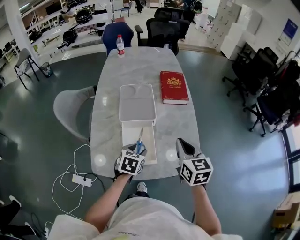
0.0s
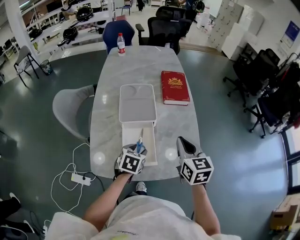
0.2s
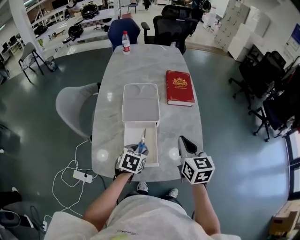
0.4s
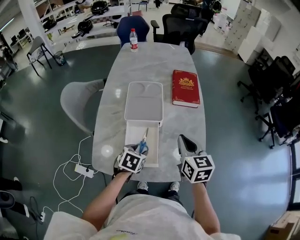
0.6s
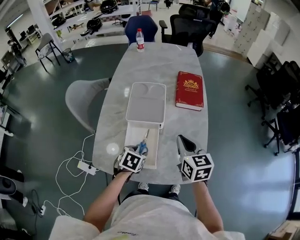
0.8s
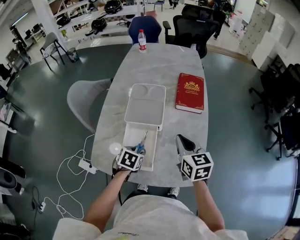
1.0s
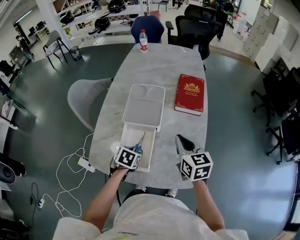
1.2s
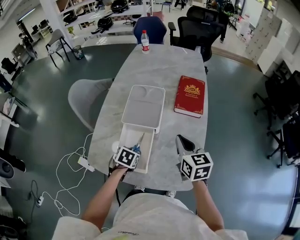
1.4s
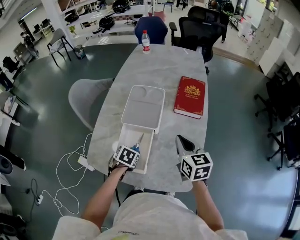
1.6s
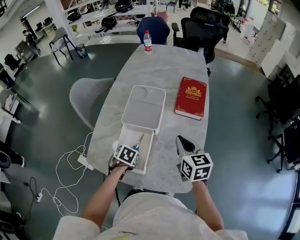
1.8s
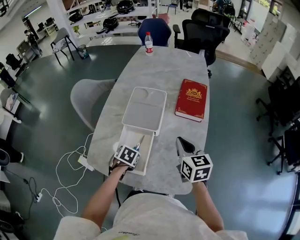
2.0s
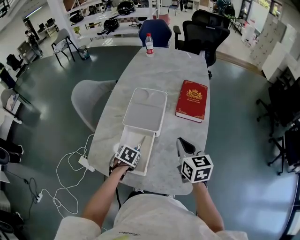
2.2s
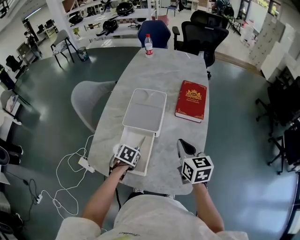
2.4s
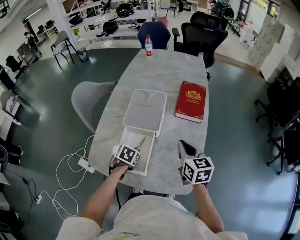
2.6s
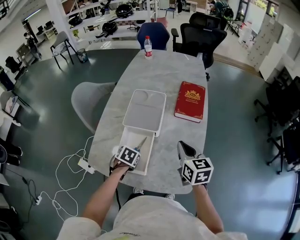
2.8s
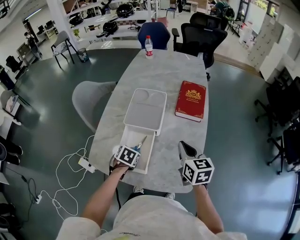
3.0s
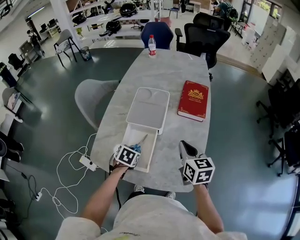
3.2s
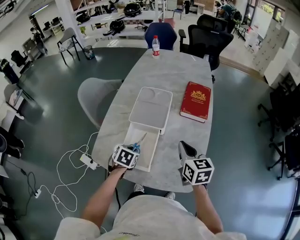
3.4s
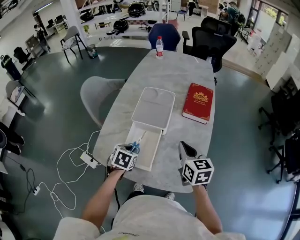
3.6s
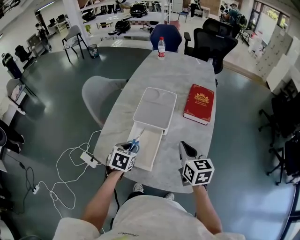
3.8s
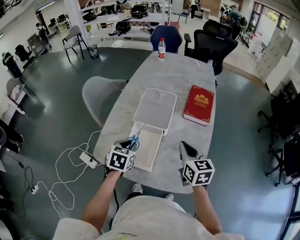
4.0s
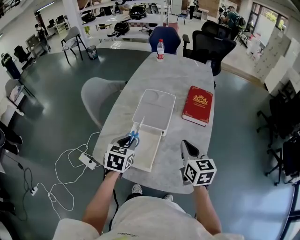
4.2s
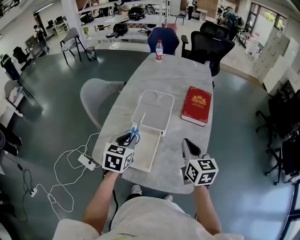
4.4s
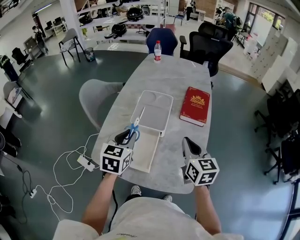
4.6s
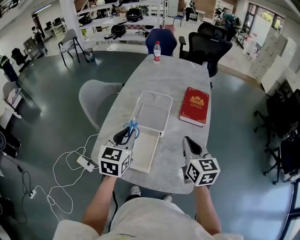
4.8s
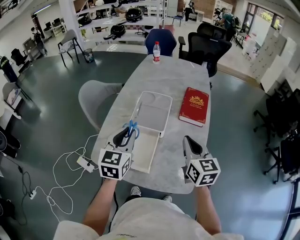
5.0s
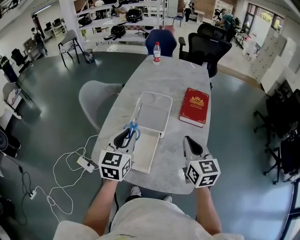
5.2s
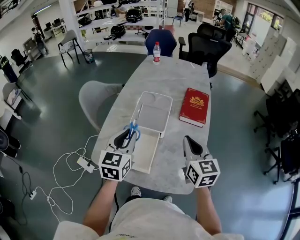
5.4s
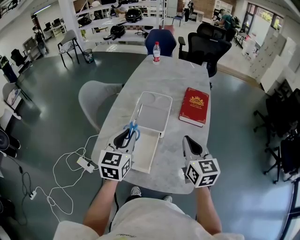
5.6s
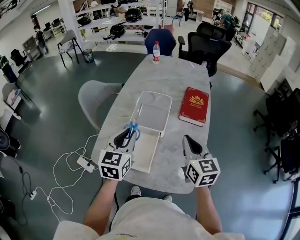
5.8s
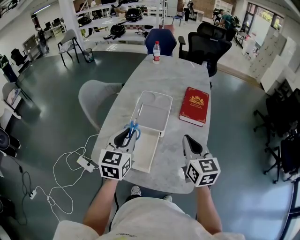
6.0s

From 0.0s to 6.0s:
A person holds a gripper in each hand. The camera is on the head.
From 0.0s to 1.6s: The right gripper goes about 10 cm forward, and swivels some 20 degrees. The left gripper moves downward, approximately 10 cm, and swivels about 30 degrees.
From 1.6s to 3.0s: The left gripper closes.
From 3.0s to 4.4s: The left gripper shifts approximately 20 cm upward, and points its fingers about 30 degrees further upward.
From 4.4s to 6.0s: The left gripper shifts some 5 cm upward.

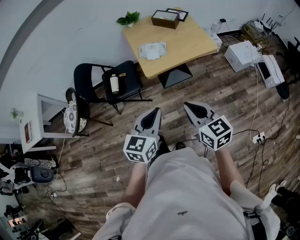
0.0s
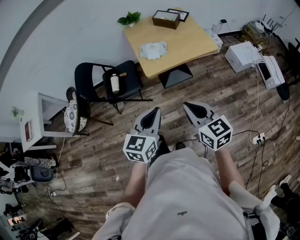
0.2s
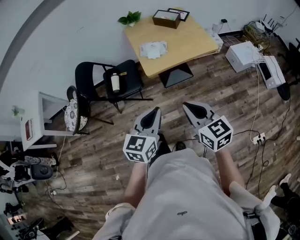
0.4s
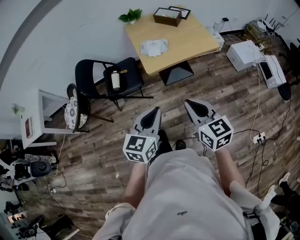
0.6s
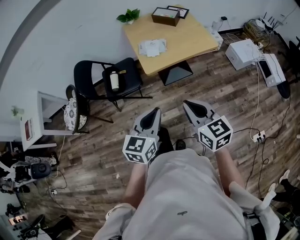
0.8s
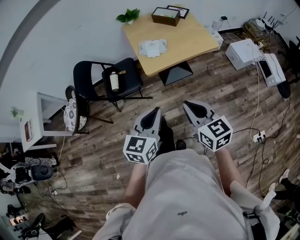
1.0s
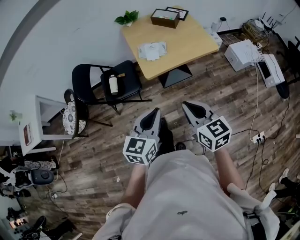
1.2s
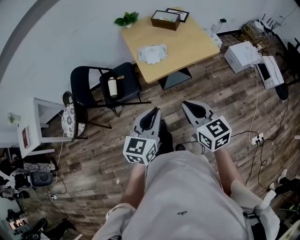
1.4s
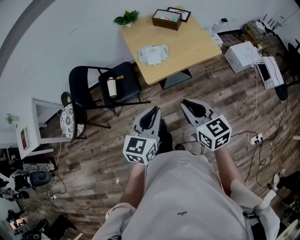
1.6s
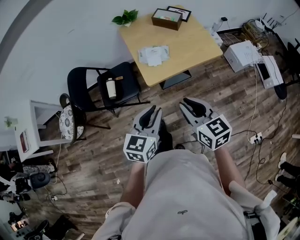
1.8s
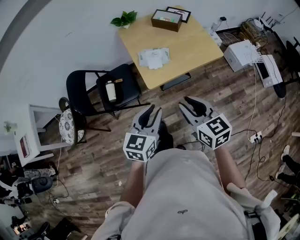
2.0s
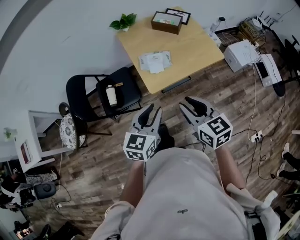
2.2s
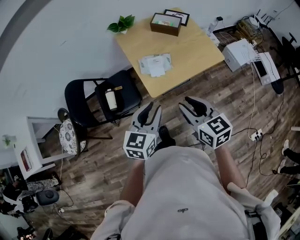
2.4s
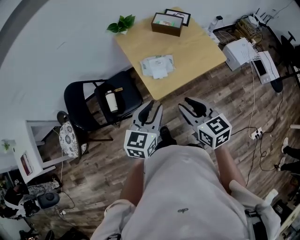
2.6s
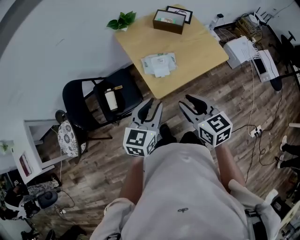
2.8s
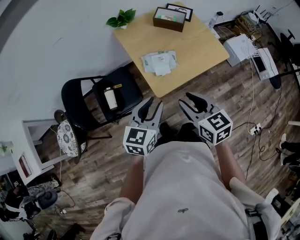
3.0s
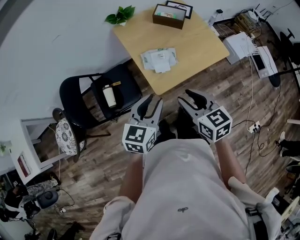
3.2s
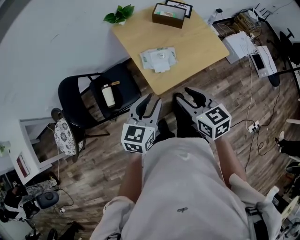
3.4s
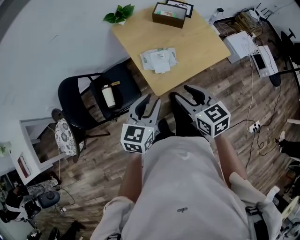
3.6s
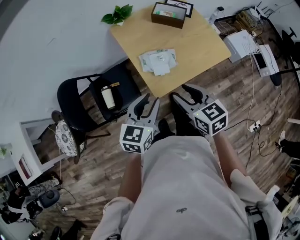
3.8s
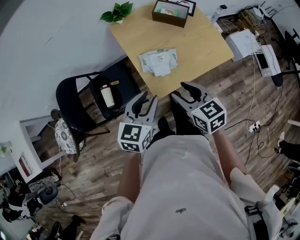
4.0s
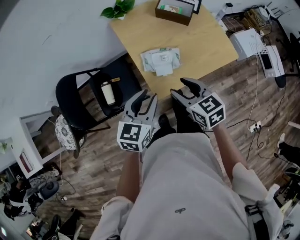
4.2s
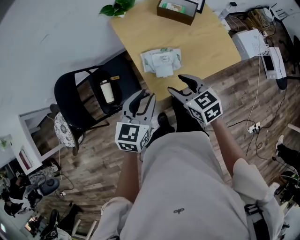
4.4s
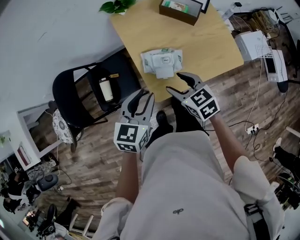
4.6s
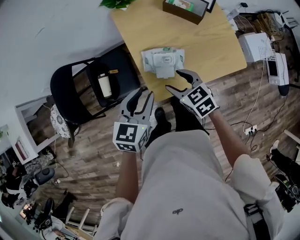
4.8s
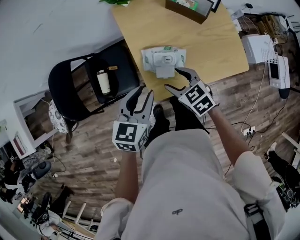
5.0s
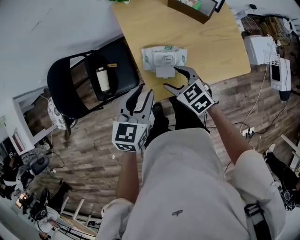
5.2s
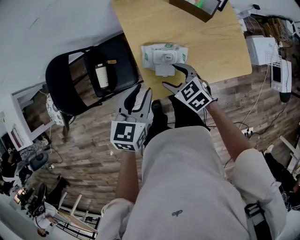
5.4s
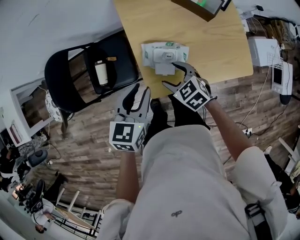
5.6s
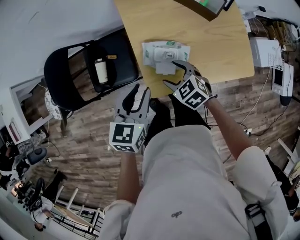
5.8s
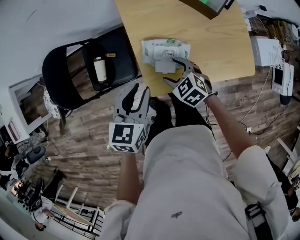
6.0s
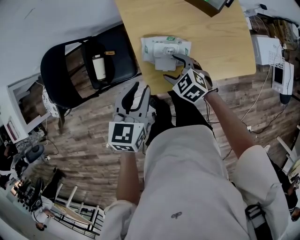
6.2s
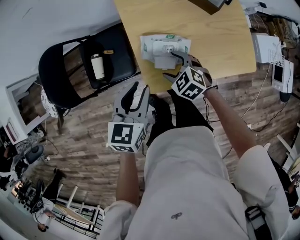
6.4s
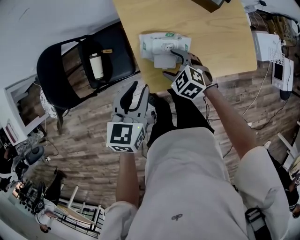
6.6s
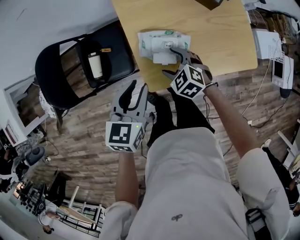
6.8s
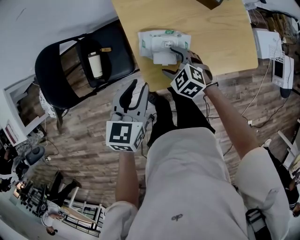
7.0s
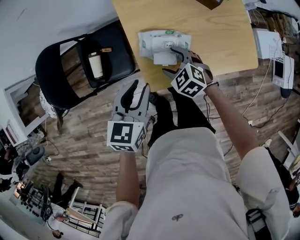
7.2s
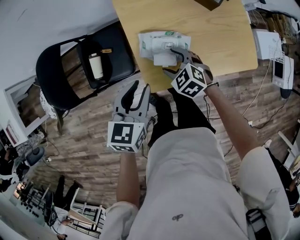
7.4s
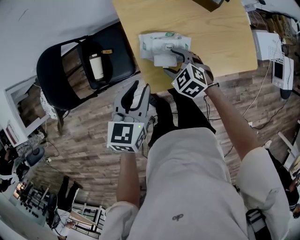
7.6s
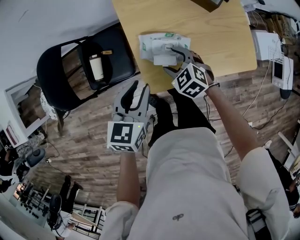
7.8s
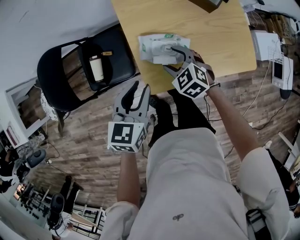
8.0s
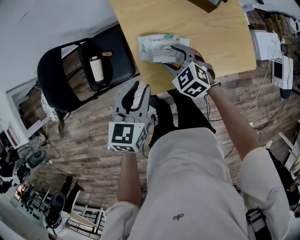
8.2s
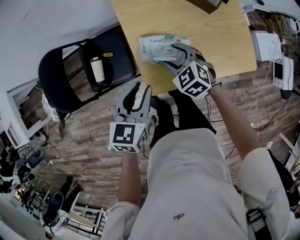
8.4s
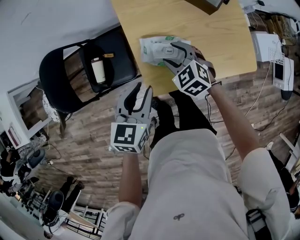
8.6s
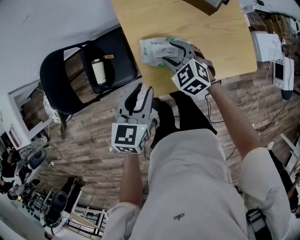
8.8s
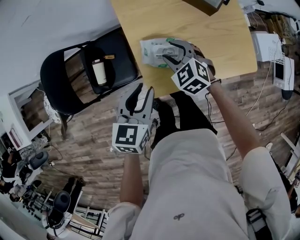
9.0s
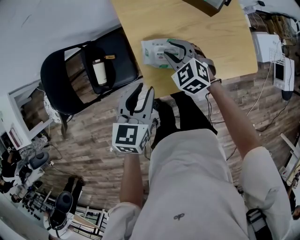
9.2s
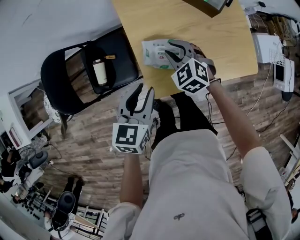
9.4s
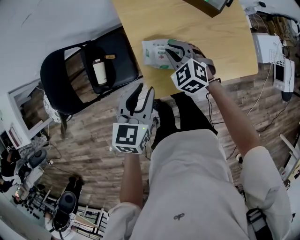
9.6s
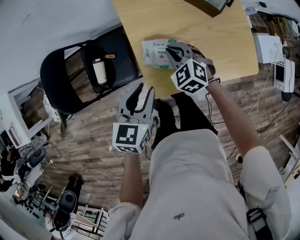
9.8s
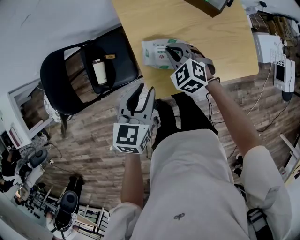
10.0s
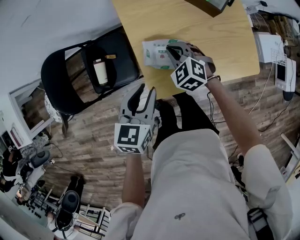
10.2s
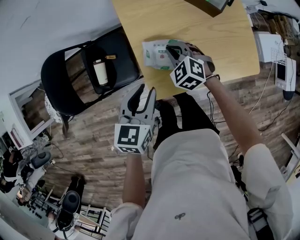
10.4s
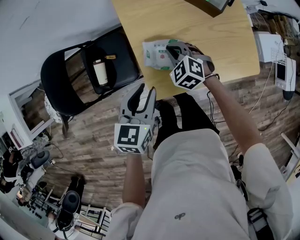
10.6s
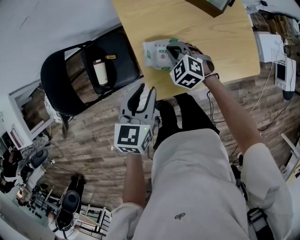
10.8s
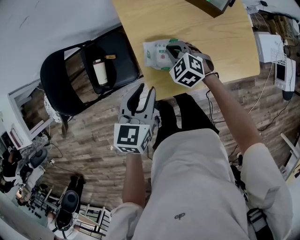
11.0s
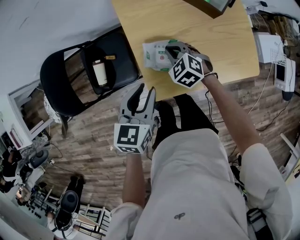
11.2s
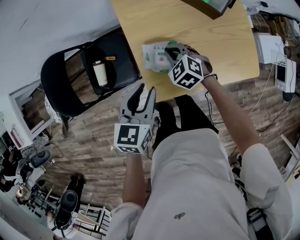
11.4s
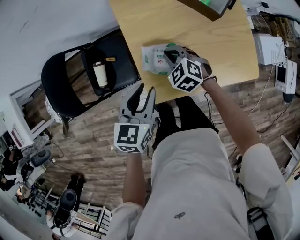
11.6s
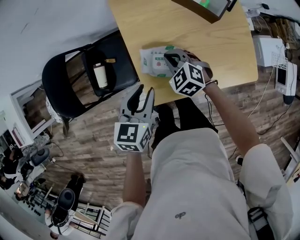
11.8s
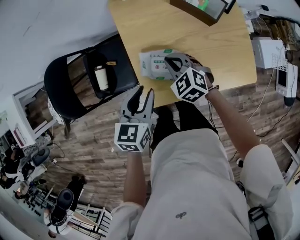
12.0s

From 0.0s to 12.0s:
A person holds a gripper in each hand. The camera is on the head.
From 0.0s to 1.6s: Both grippers move forward, approximately 10 cm.
From 1.6s to 3.0s: The grippers both shift forward and to the left by roughly 20 cm. The left gripper opens.
From 3.0s to 4.4s: The left gripper is displaced forward by approximately 10 cm. The right gripper moves forward and downward, approximately 15 cm.
From 4.4s to 6.0s: The left gripper moves downward and forward, some 10 cm. The right gripper goes about 15 cm downward and forward, and turns by approximately 30 degrees.
From 6.0s to 7.6s: The grippers make only small movements.
From 7.6s to 9.0s: The right gripper is displaced forward and upward by about 10 cm.
From 9.0s to 10.4s: The right gripper closes.
From 10.4s to 12.0s: The grippers move only a little.

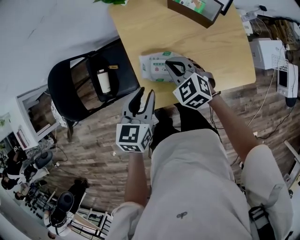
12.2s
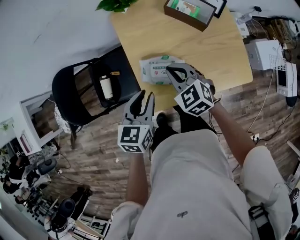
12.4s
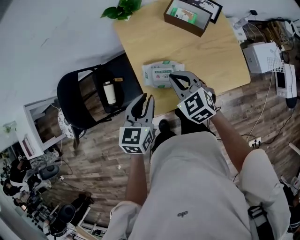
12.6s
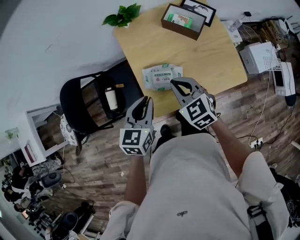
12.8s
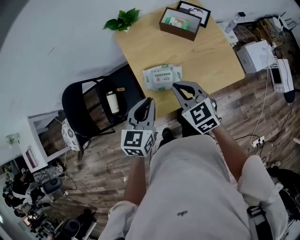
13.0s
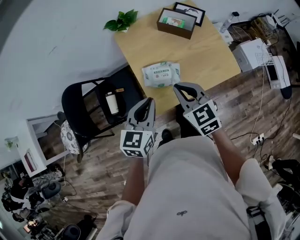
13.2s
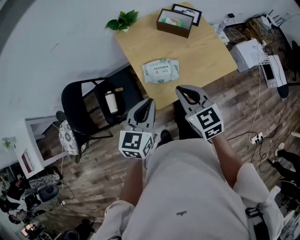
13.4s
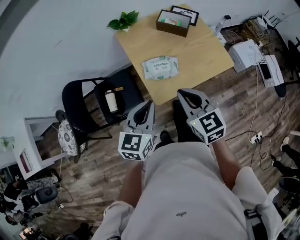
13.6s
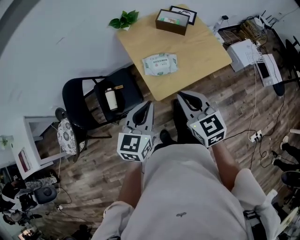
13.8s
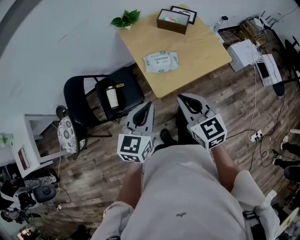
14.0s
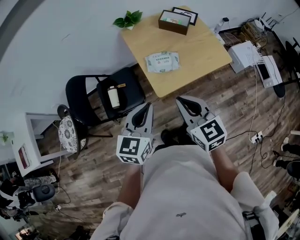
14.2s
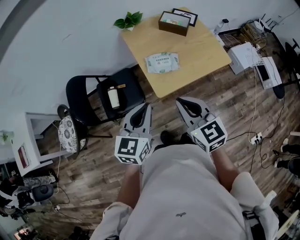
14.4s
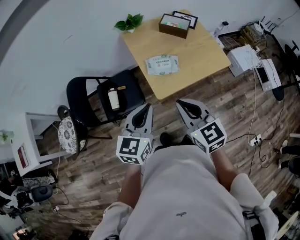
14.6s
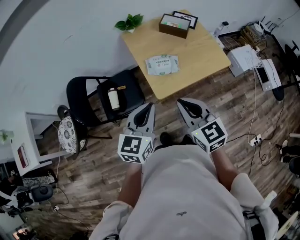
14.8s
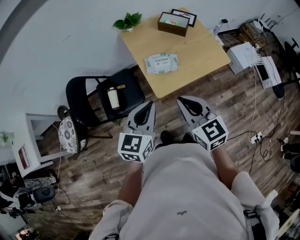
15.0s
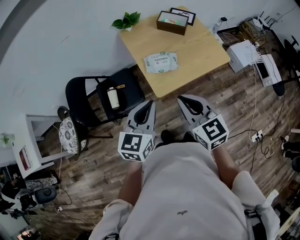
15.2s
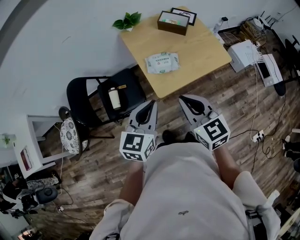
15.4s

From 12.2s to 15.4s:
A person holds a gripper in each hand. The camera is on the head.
From 12.2s to 13.8s: The two grippers go some 30 cm backward and upward. The right gripper turns by about 40 degrees; the left gripper swivels roughly 20 degrees, and closes.
From 13.8s to 15.4s: The right gripper changes place by roughly 5 cm.

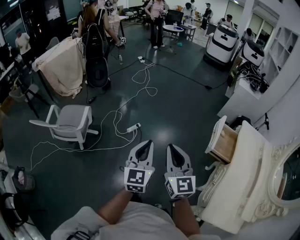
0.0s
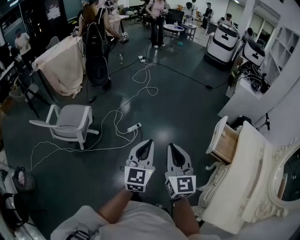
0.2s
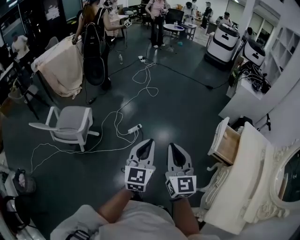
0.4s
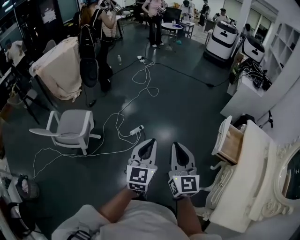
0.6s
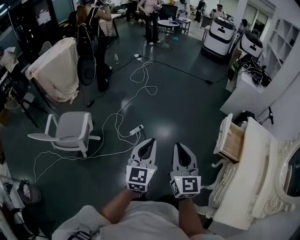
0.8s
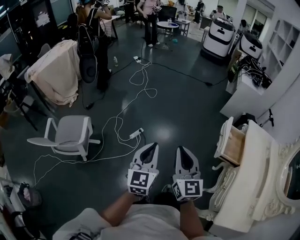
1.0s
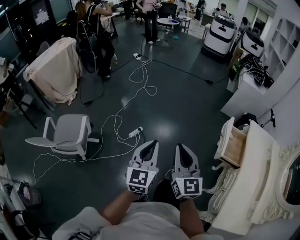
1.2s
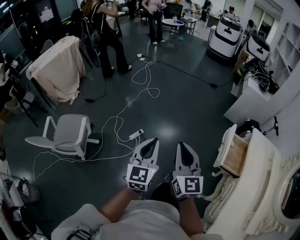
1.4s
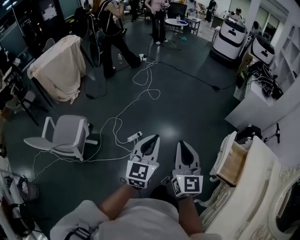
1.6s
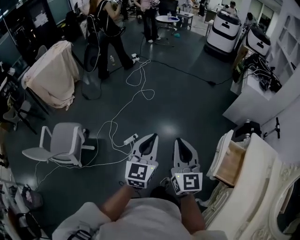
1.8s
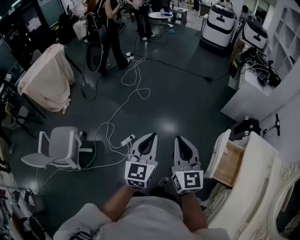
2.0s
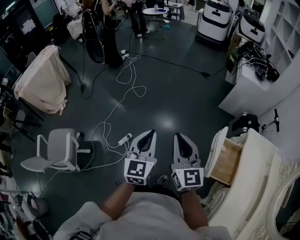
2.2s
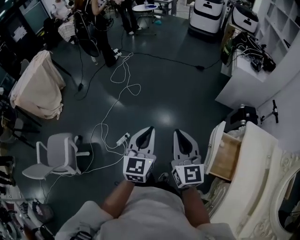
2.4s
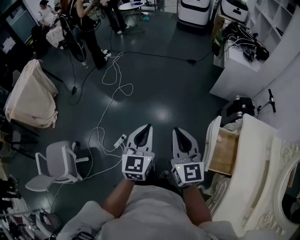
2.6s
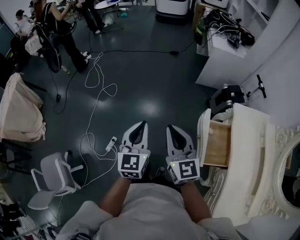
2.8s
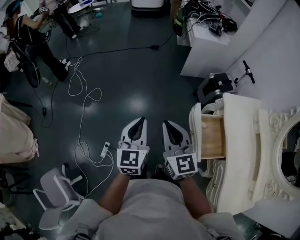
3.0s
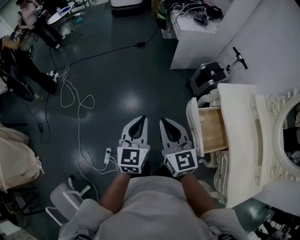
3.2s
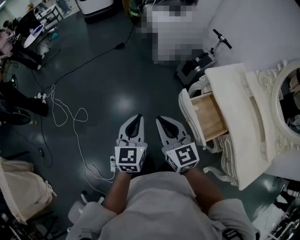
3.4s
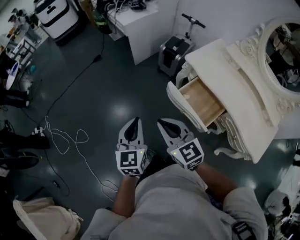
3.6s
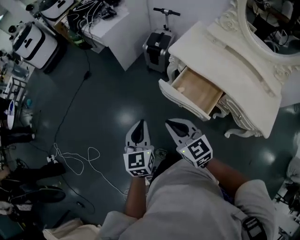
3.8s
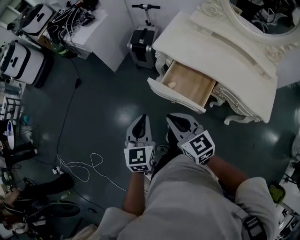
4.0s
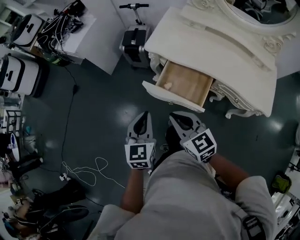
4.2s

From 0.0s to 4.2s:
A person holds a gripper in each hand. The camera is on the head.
From 0.0s to 1.4s: The grippers both shift forward by about 20 cm.
From 1.4s to 2.8s: The two grippers go approximately 35 cm forward and to the right.
From 2.8s to 4.2s: The left gripper shifts by roughly 30 cm, and turns by approximately 70 degrees. The right gripper ends up some 25 cm from where it was, and rotates about 50 degrees.
